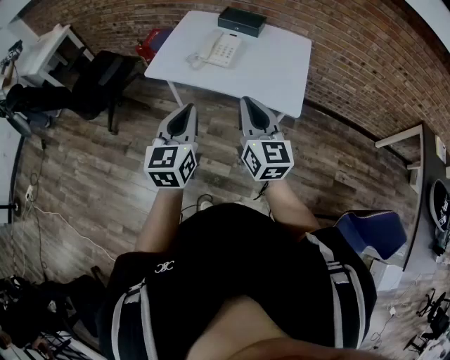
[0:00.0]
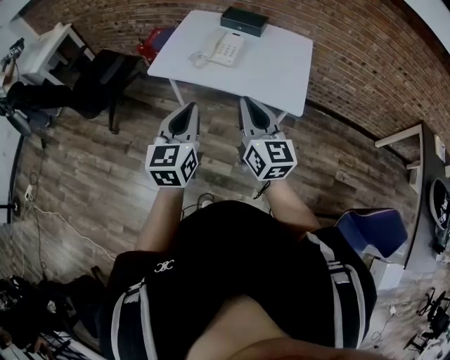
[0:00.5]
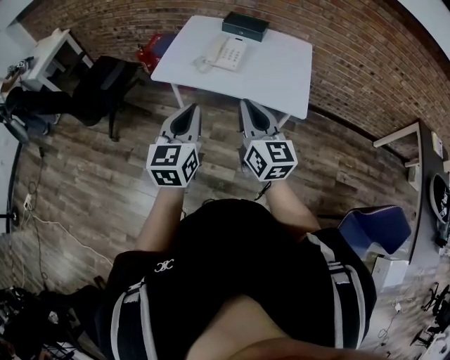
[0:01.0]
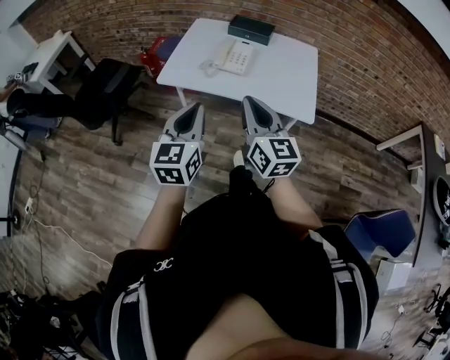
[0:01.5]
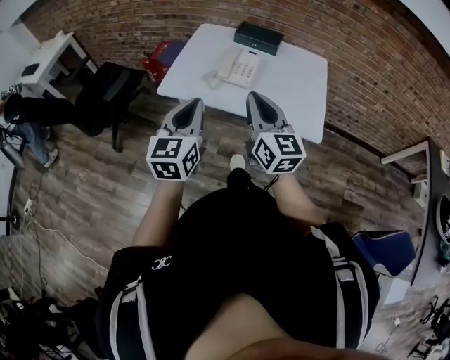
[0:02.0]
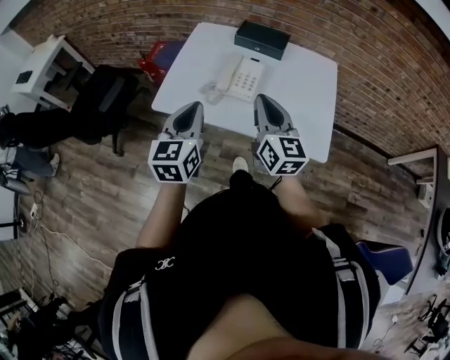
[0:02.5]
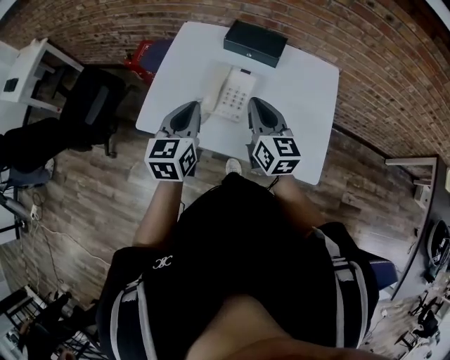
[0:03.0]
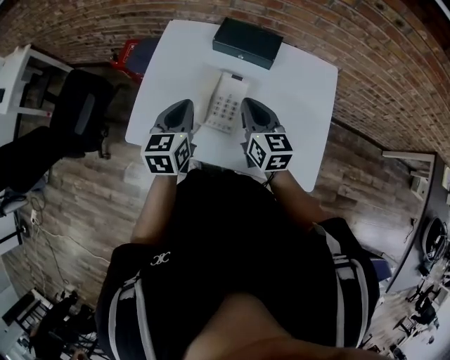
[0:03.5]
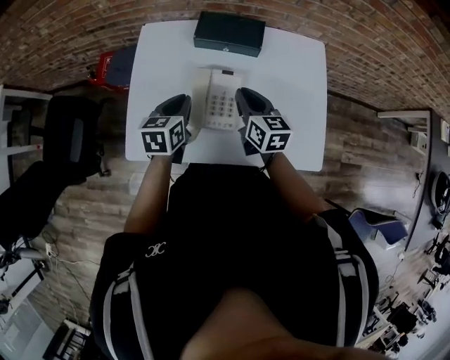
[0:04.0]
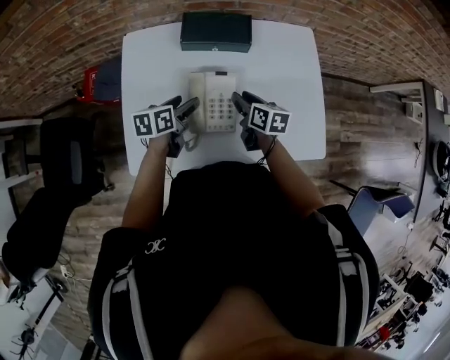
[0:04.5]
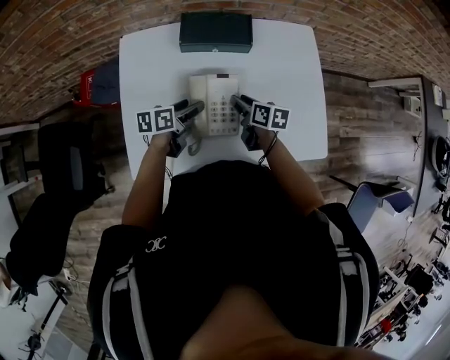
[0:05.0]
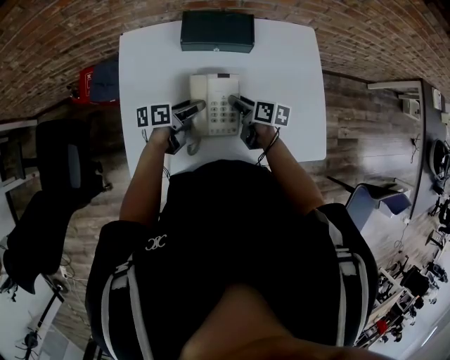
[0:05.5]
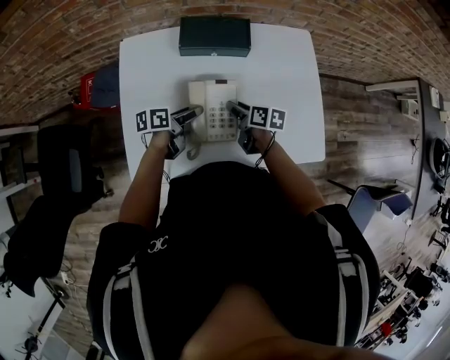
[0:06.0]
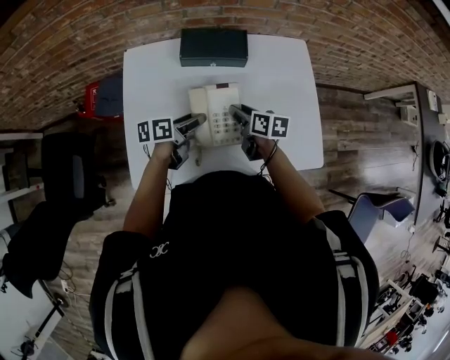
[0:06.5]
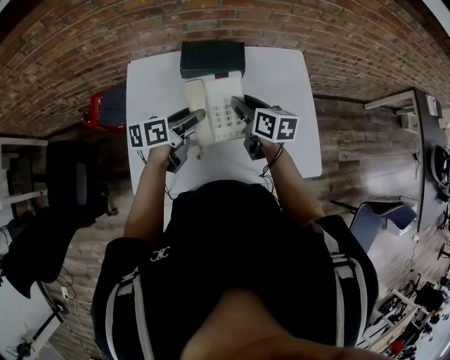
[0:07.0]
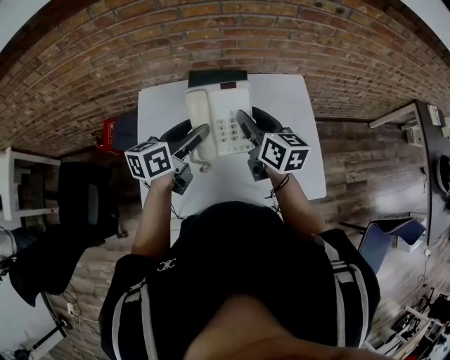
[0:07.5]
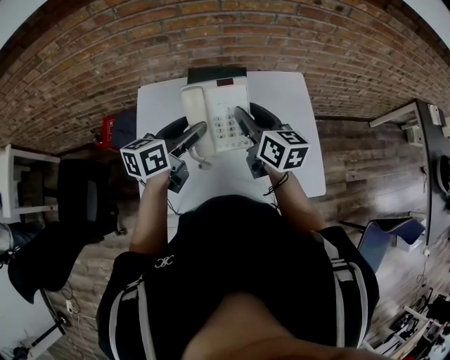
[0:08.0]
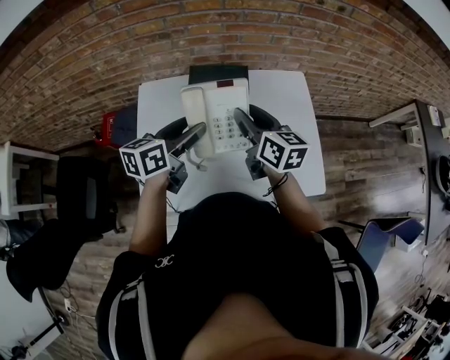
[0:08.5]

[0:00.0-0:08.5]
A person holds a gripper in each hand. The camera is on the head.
0:00.0 to 0:02.0: Both grippers move forward and to the left, some 15 cm.
0:02.0 to 0:04.0: The two grippers go about 40 cm forward and downward. The left gripper tips its fingers downward by some 30 degrees, while the right gripper rotates approximately 30 degrees.
0:04.0 to 0:06.5: Both grippers travel together downward, roughly 10 cm. The left gripper swivels about 40 degrees, and opens up; the right gripper turns by about 30 degrees, and opens its fingers.
0:06.5 to 0:08.5: Both grippers travel together upward, some 20 cm. The left gripper swivels roughly 30 degrees; the right gripper changes its angle by approximately 30 degrees.

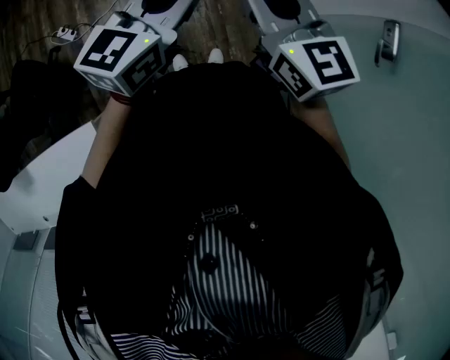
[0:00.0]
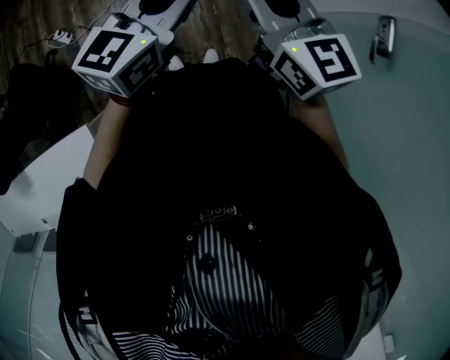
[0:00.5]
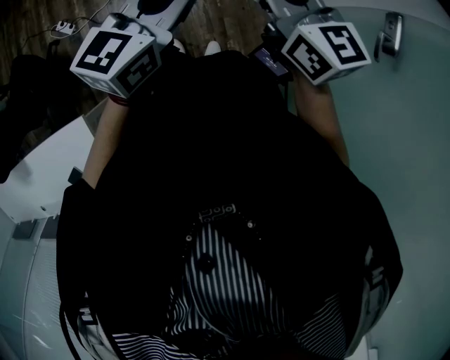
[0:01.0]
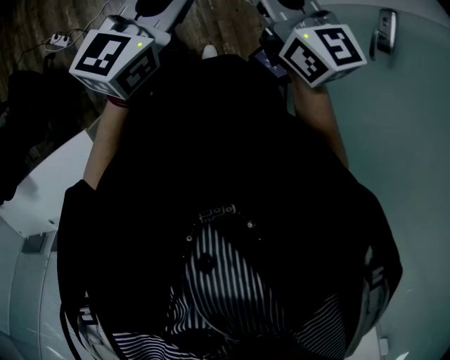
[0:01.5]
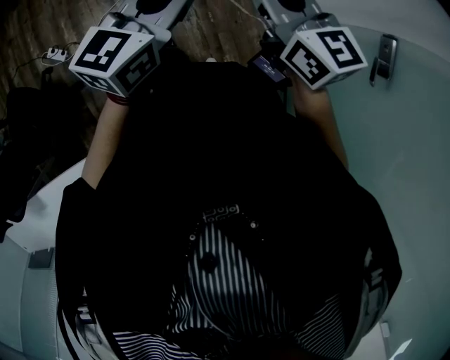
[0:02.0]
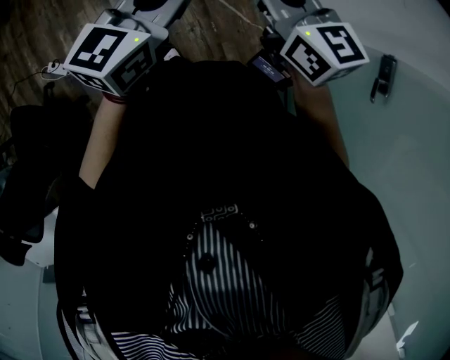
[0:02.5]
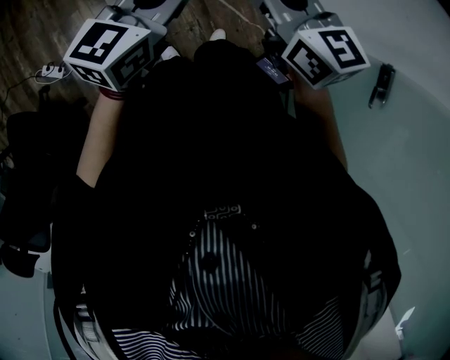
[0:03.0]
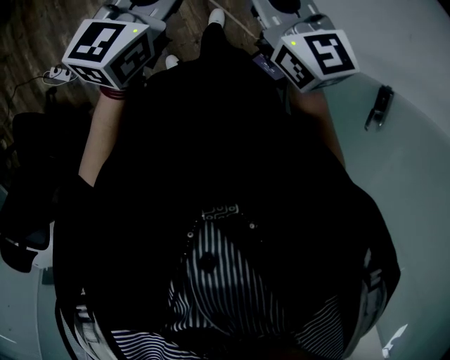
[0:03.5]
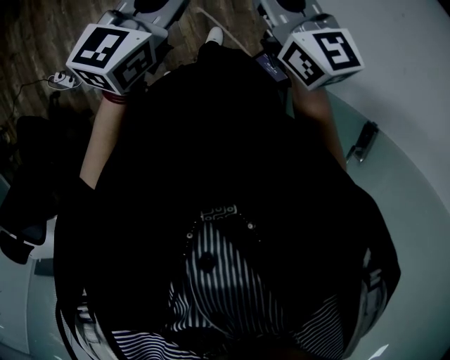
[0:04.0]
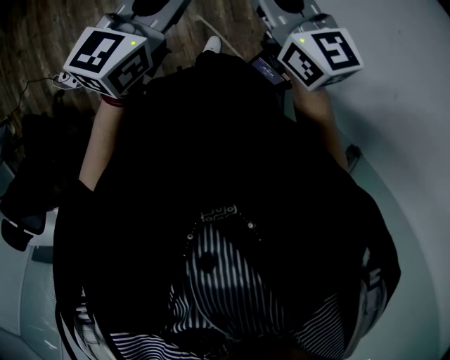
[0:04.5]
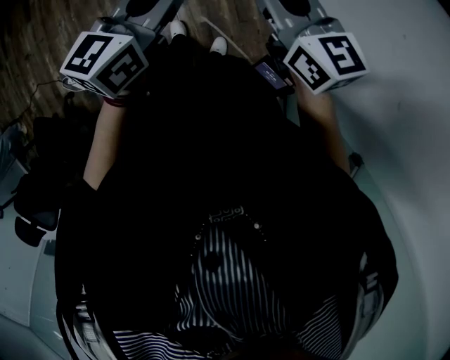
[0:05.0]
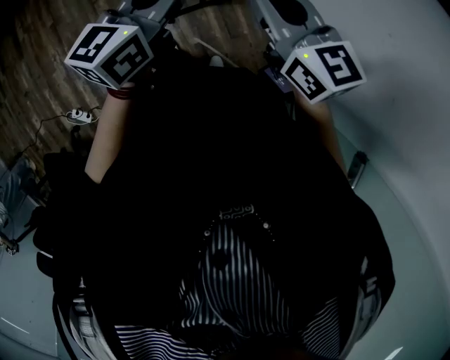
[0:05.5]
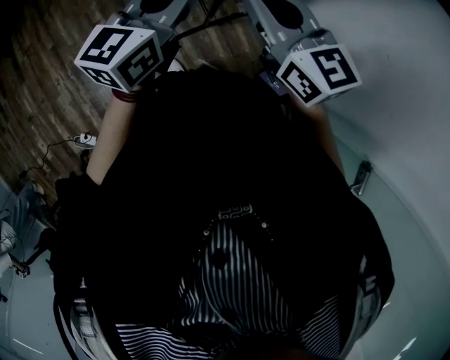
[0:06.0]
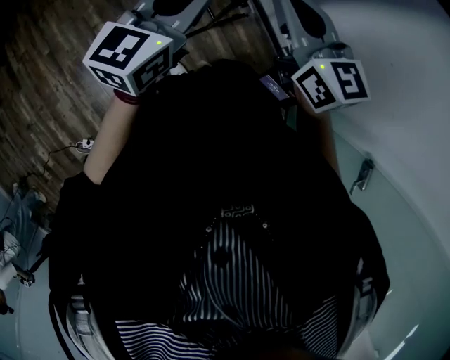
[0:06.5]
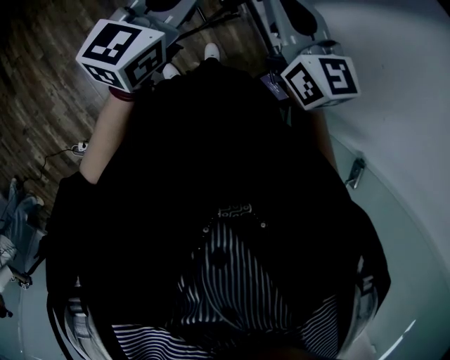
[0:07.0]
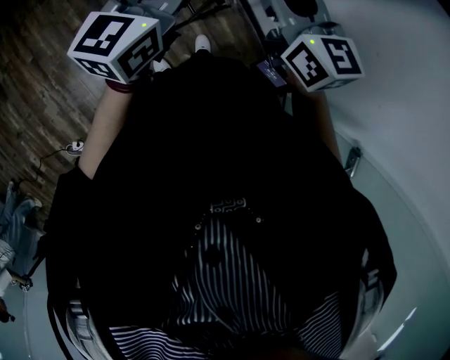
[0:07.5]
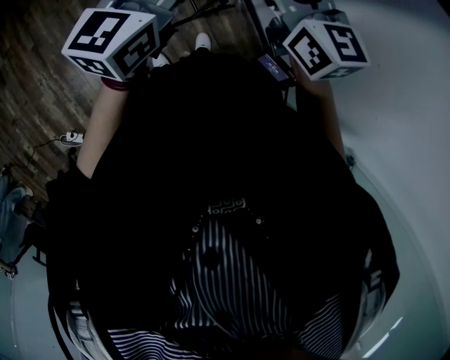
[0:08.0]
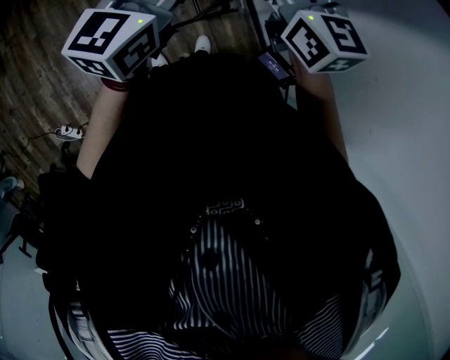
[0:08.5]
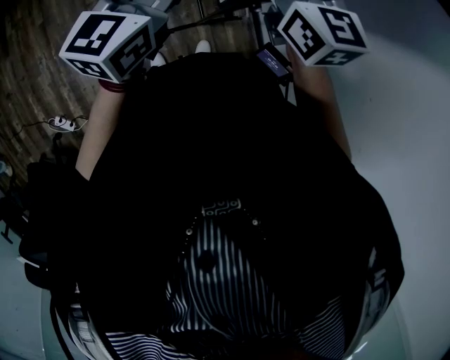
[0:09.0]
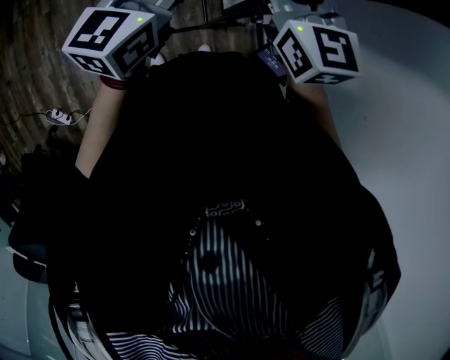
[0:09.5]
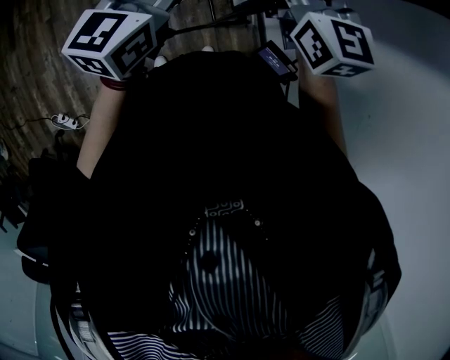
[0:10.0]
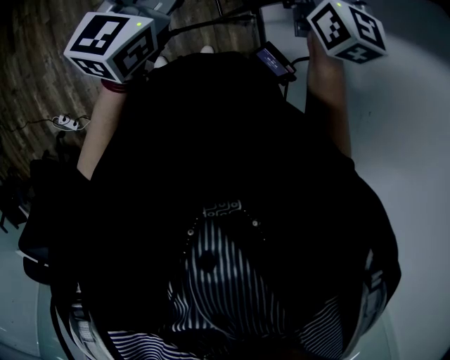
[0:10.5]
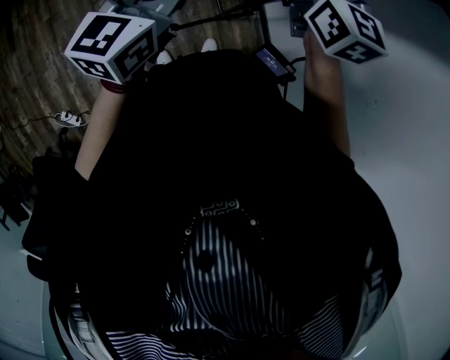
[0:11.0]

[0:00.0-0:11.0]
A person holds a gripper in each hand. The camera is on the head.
0:00.0 to 0:02.0: Both grippers move forward, approximately 15 cm.
0:02.0 to 0:03.5: Both grippers travel together forward and to the left, some 25 cm.
0:03.5 to 0:05.5: The left gripper travels forward by roughly 35 cm. Meanwhile the right gripper goes approximately 35 cm forward and to the right.
0:05.5 to 0:07.5: The two grippers go some 10 cm forward. The right gripper opens.
0:07.5 to 0:09.0: Both grippers move forward and to the left, roughly 15 cm.
0:09.0 to 0:11.0: The right gripper moves to the right, roughly 10 cm, and closes up.

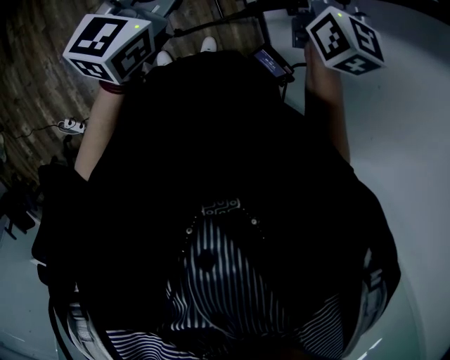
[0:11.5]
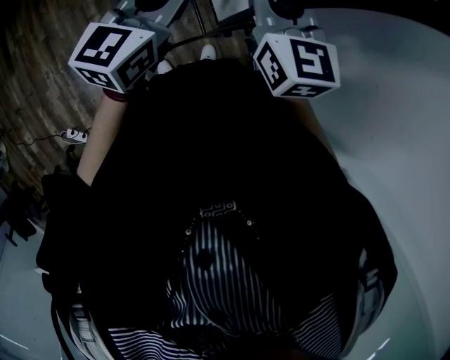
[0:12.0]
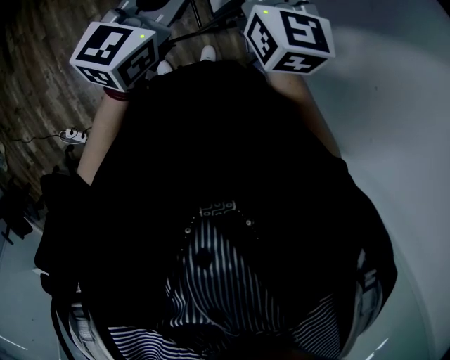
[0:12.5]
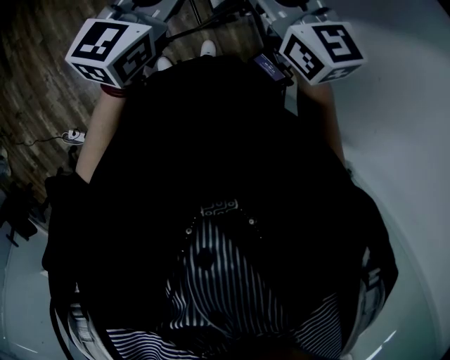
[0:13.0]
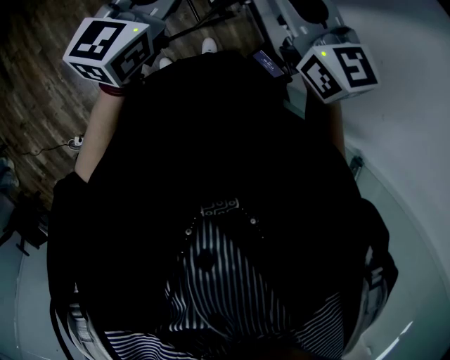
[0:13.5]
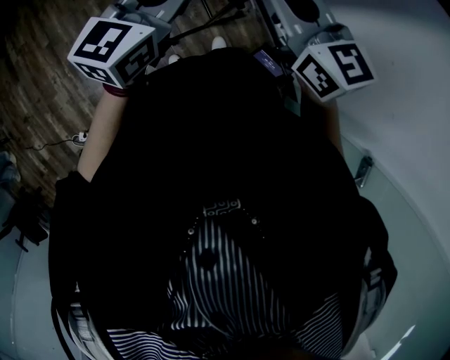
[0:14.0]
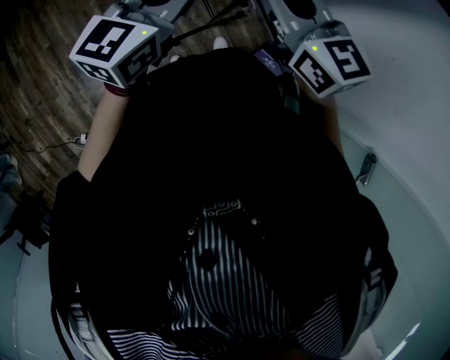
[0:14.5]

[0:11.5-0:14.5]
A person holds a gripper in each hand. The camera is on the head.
0:11.5 to 0:13.0: The right gripper swings forward and backward, approximately 10 cm each way, with 2 reversals, and opens.
0:13.0 to 0:14.5: The grippers both shift backward by approximately 10 cm. The right gripper closes up.

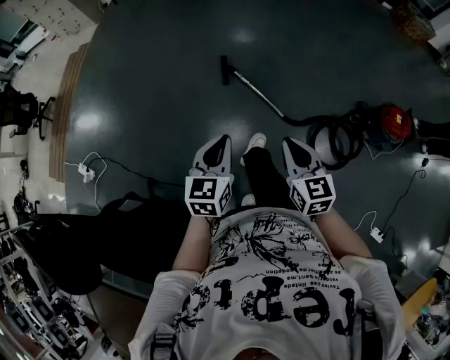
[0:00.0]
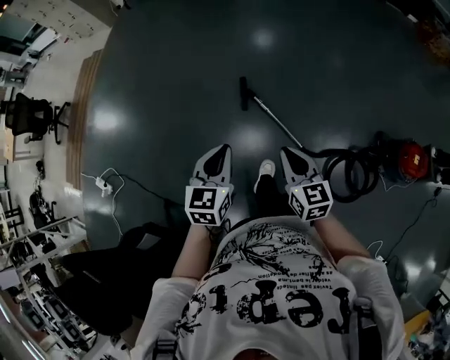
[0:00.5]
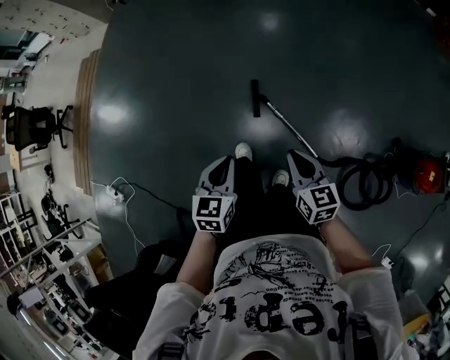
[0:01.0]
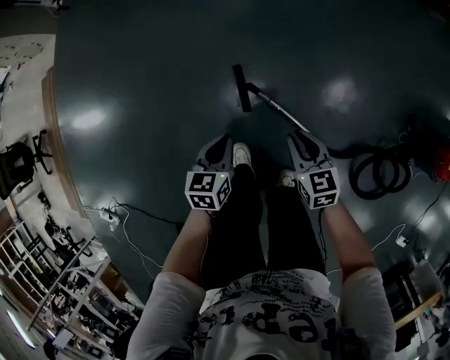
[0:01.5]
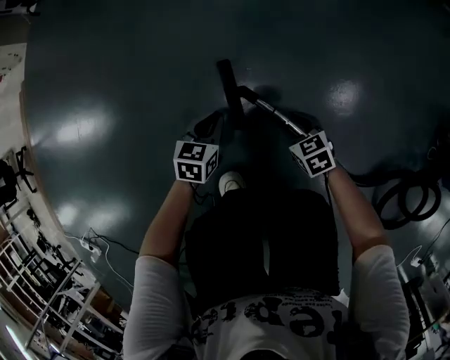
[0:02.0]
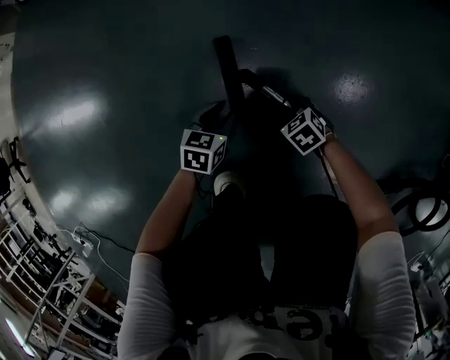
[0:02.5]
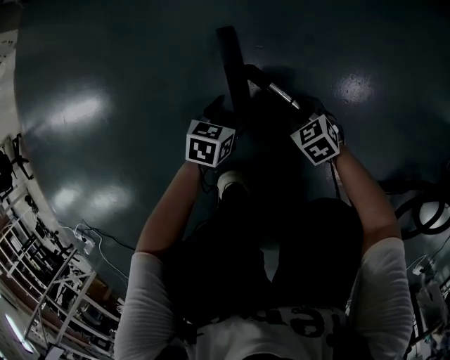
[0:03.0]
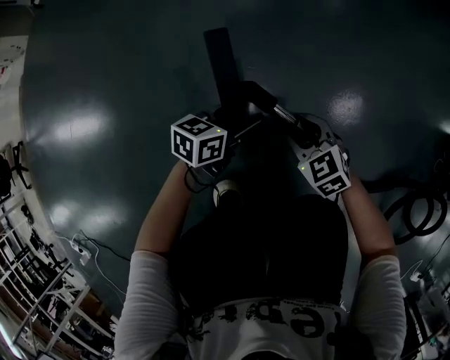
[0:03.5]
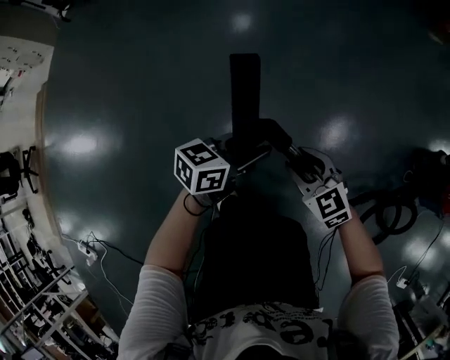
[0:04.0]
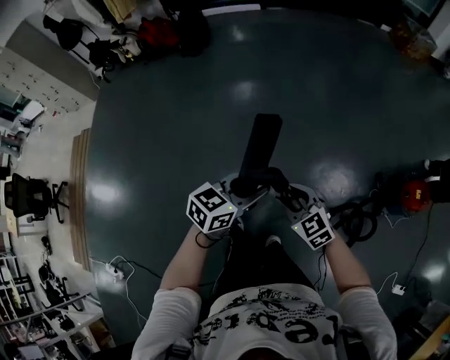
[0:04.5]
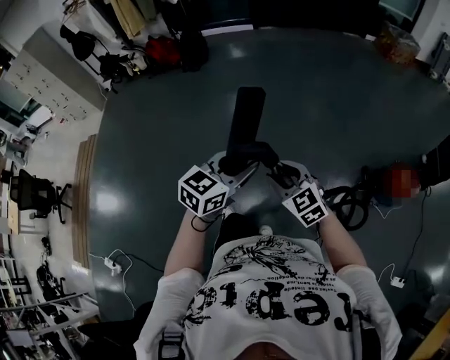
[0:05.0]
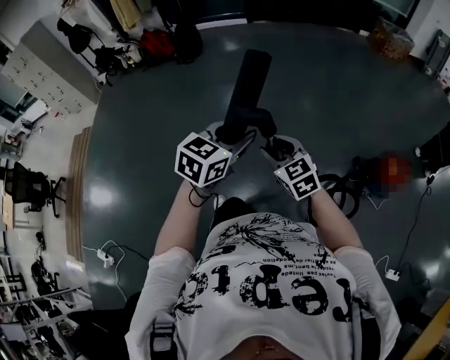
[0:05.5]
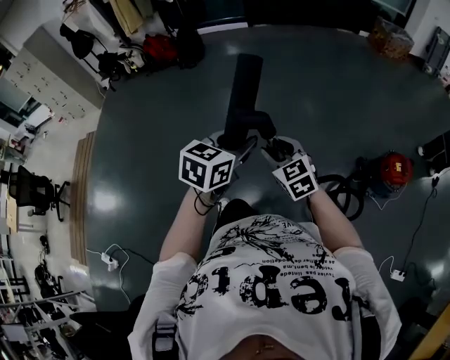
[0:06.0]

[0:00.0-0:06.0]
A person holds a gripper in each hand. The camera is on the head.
0:00.0 to 0:02.0: The pair of grippers is taken forward, roughly 60 cm. The two grippers go roughly 70 cm downward. The right gripper changes its angle by approximately 30 degrees, and opens up; the left gripper changes its angle by some 30 degrees.
0:02.0 to 0:04.0: The right gripper travels upward by roughly 30 cm, and turns by roughly 20 degrees, while the left gripper moves upward and to the right, roughly 30 cm, swivels some 40 degrees, and opens, then closes once more.
0:04.0 to 0:06.0: Both grippers travel together upward, roughly 60 cm. The left gripper rotates about 30 degrees.
